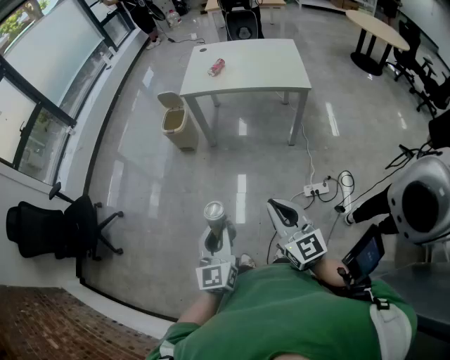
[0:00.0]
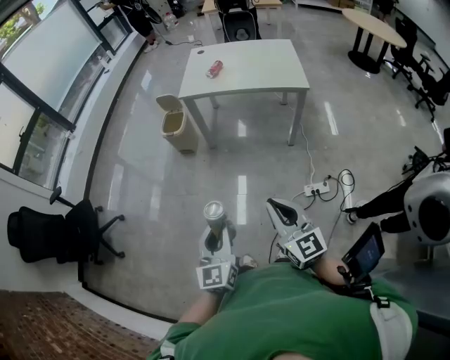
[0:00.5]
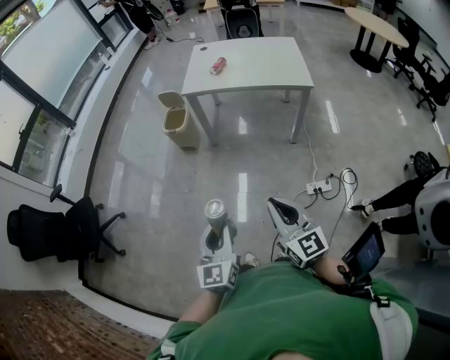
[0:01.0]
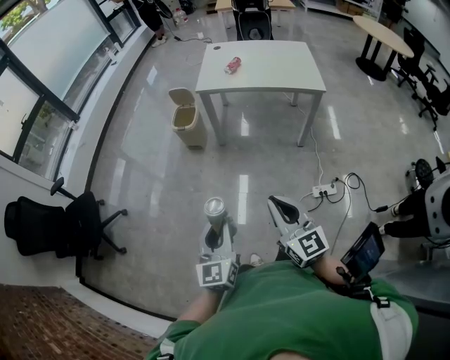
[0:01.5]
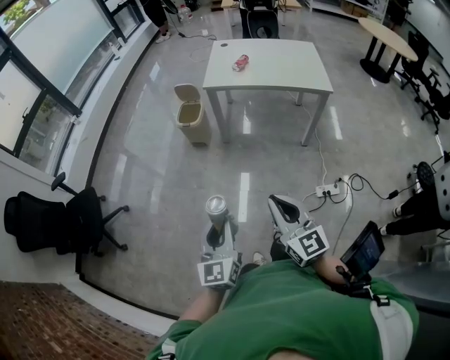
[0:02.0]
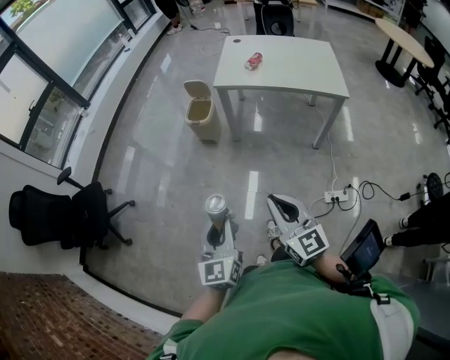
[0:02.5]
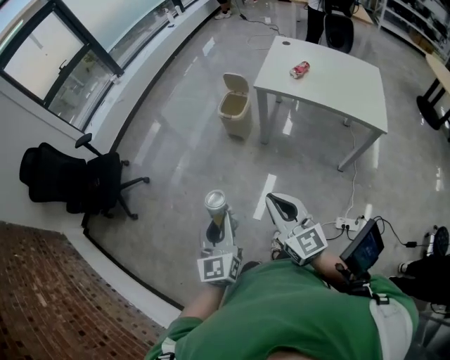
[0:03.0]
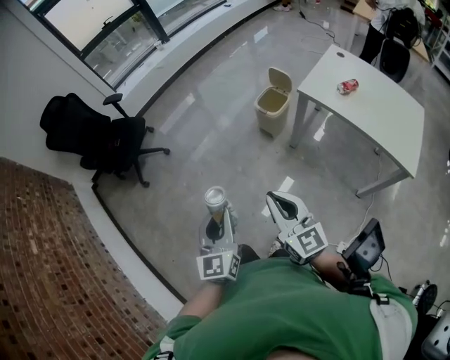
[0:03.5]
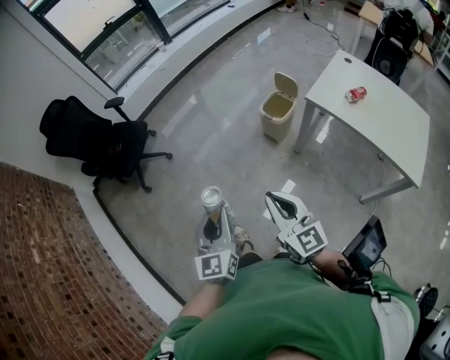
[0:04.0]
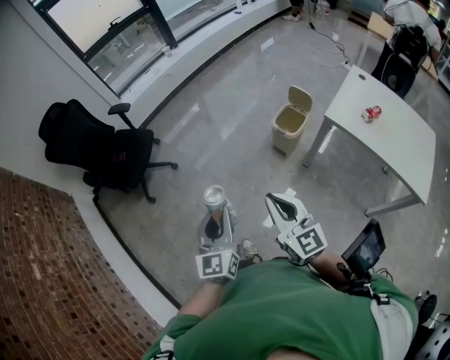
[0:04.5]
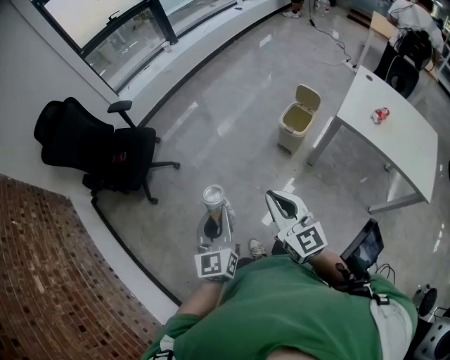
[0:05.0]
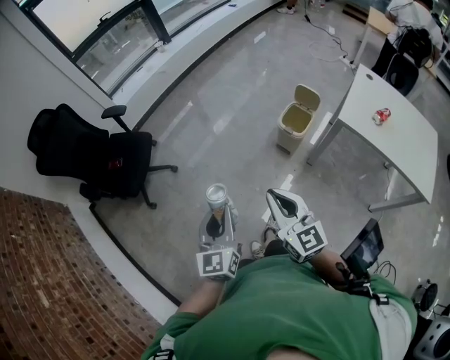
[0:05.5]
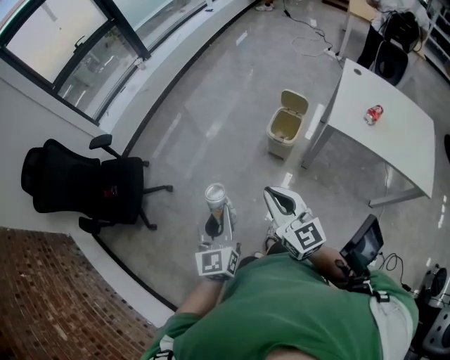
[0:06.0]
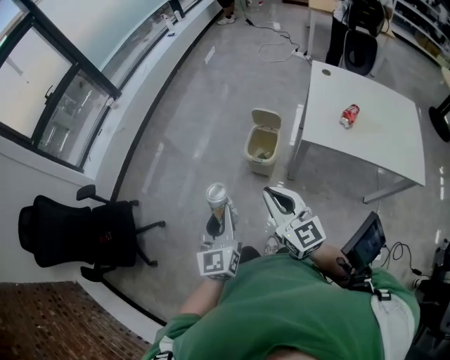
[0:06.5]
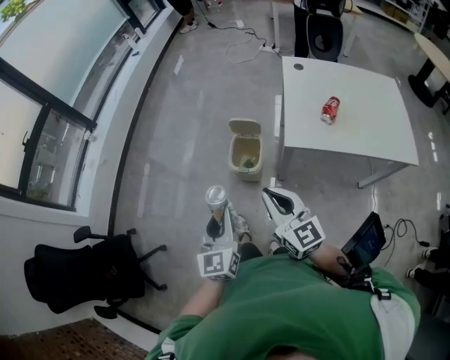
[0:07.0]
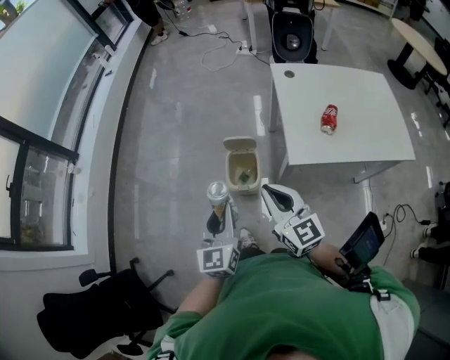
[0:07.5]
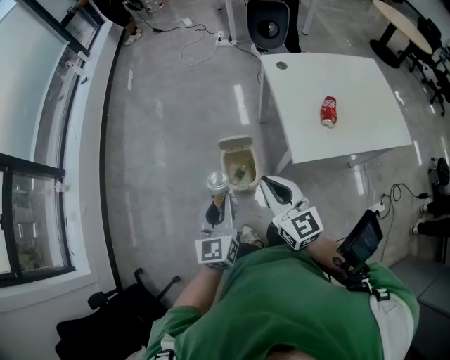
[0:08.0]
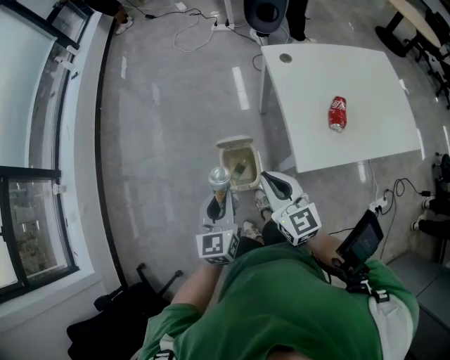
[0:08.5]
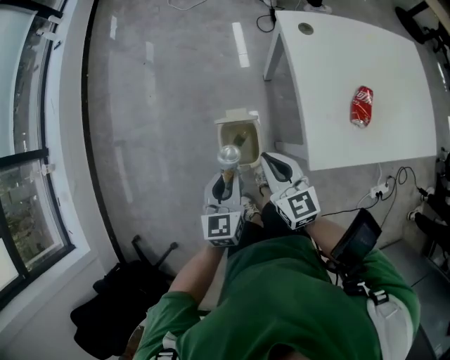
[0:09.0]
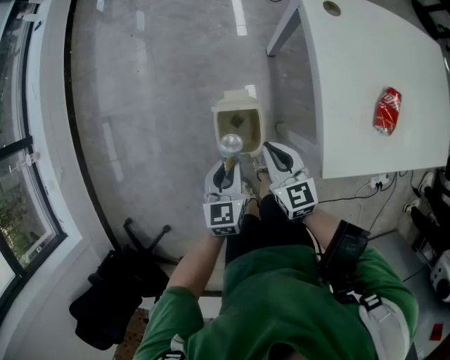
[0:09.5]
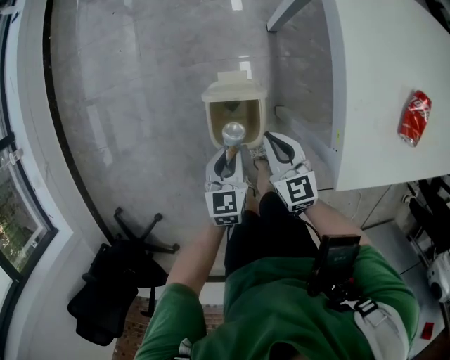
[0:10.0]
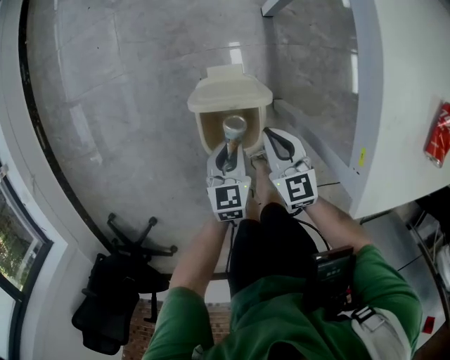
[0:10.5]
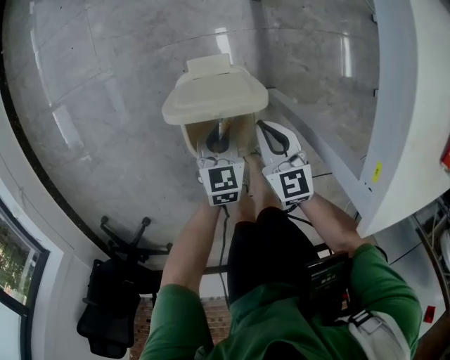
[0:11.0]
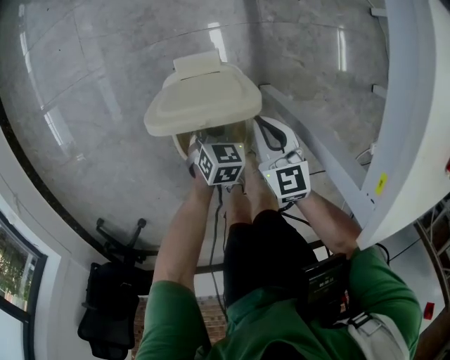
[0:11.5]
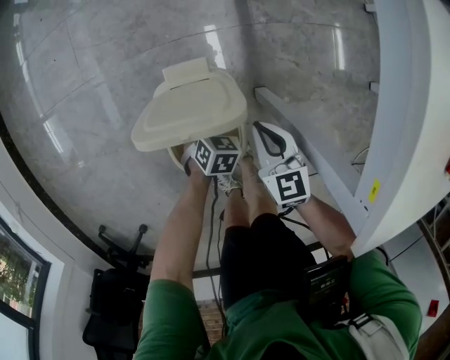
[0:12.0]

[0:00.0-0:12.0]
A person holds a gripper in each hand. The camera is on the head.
0:00.0 to 0:02.0: Both grippers move to the left, roughly 10 cm.
0:02.0 to 0:04.0: The left gripper changes place by approximately 20 cm, and swivels approximately 40 degrees; the right gripper changes place by about 25 cm, and swivels approximately 40 degrees.
0:04.0 to 0:06.0: Both grippers travel together forward, roughly 25 cm.
0:06.0 to 0:08.0: The left gripper changes place by about 50 cm, and turns by approximately 40 degrees, while the right gripper moves roughly 35 cm, and swivels about 40 degrees.
0:08.0 to 0:10.0: Both grippers move downward and forward, about 40 cm. The right gripper turns by some 30 degrees. The left gripper angles its fingers downward, by roughly 30 degrees.
0:10.0 to 0:12.0: The left gripper goes approximately 30 cm downward, and swivels approximately 40 degrees; the right gripper moves downward, approximately 20 cm.

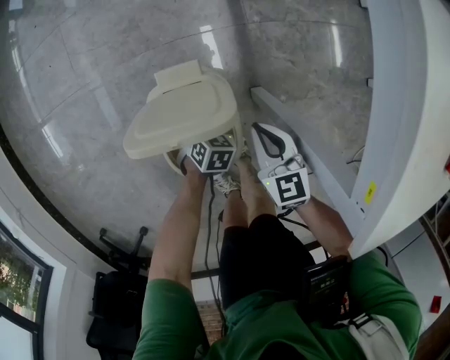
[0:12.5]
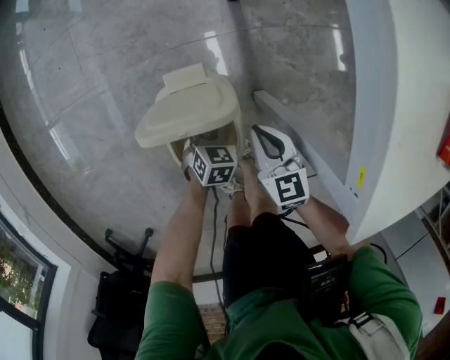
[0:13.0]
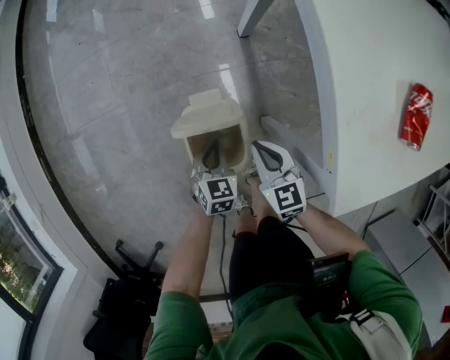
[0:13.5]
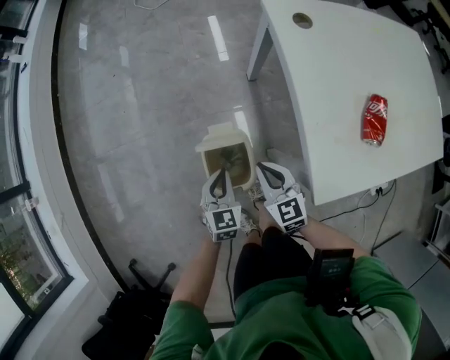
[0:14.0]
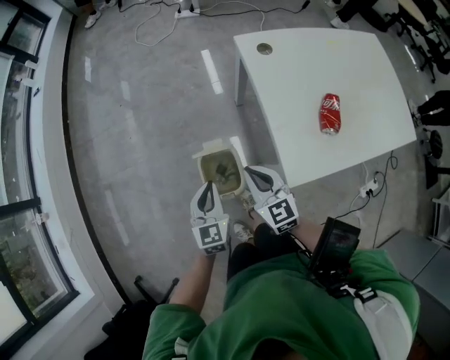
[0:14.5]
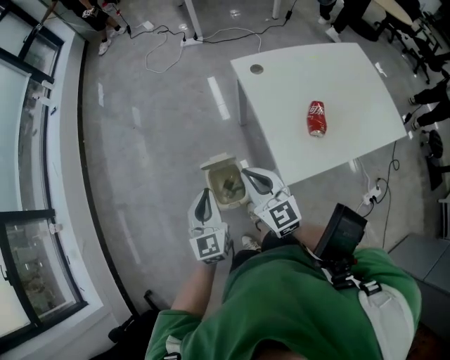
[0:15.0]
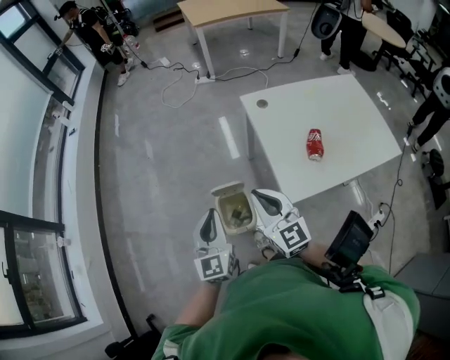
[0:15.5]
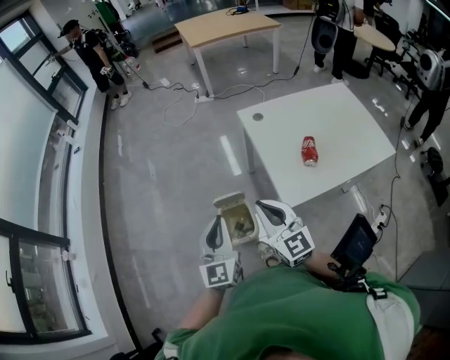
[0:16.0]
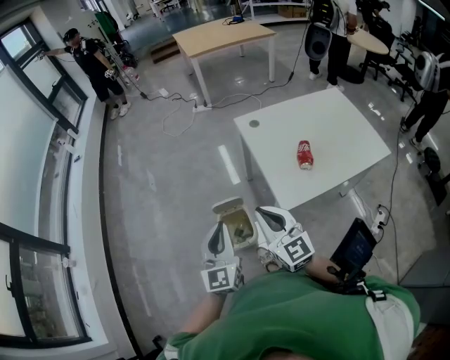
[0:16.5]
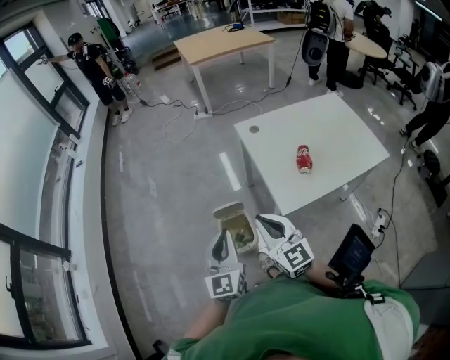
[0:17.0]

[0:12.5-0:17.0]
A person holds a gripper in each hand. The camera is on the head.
0:12.5 to 0:14.5: Both grippers move upward, approximately 40 cm. The right gripper rotates about 20 degrees, while the left gripper points its fingers some 50 degrees further upward, and closes.
0:14.5 to 0:17.0: Both grippers move upward and backward, some 25 cm. The right gripper turns by approximately 20 degrees; the left gripper changes its angle by approximately 30 degrees.

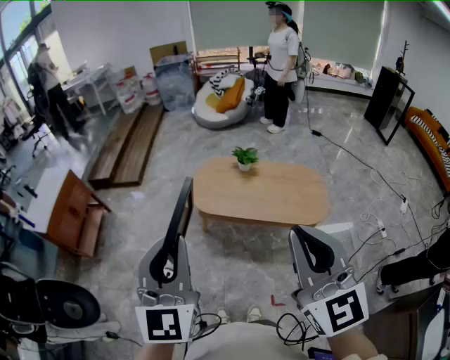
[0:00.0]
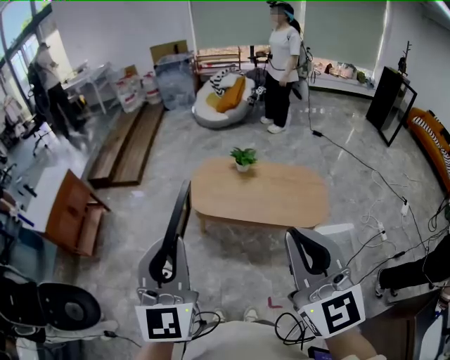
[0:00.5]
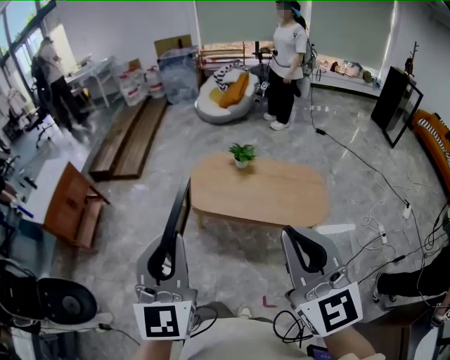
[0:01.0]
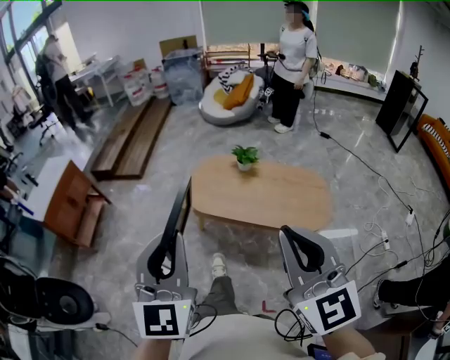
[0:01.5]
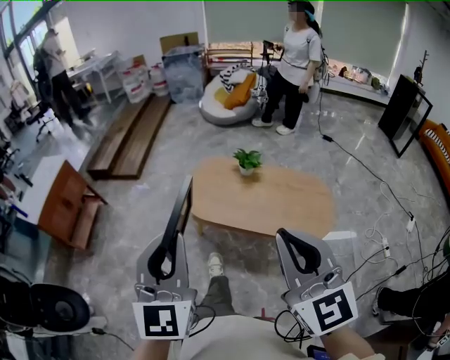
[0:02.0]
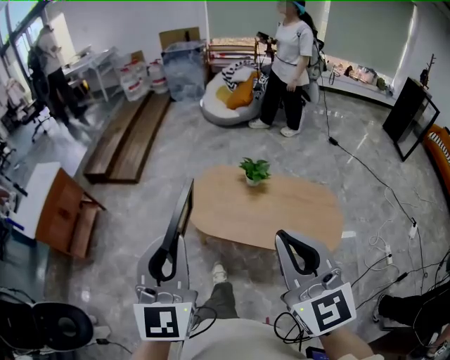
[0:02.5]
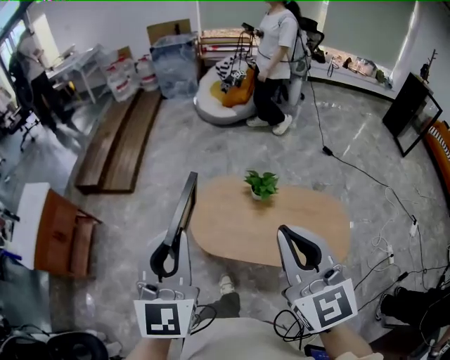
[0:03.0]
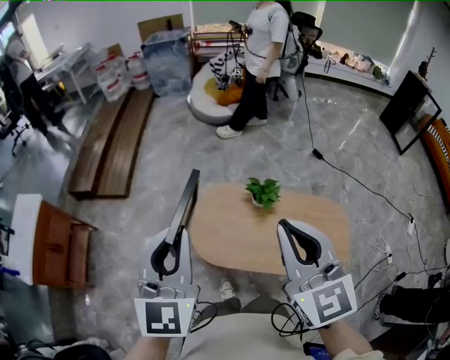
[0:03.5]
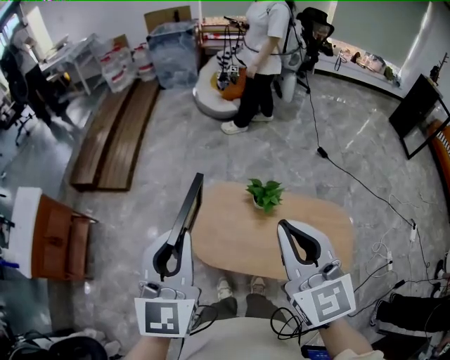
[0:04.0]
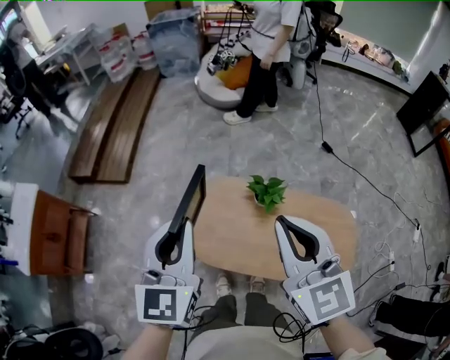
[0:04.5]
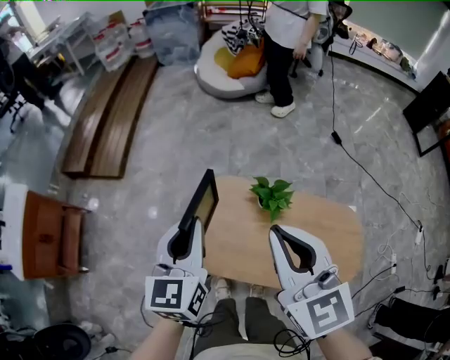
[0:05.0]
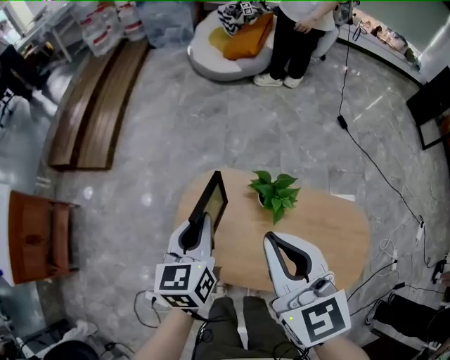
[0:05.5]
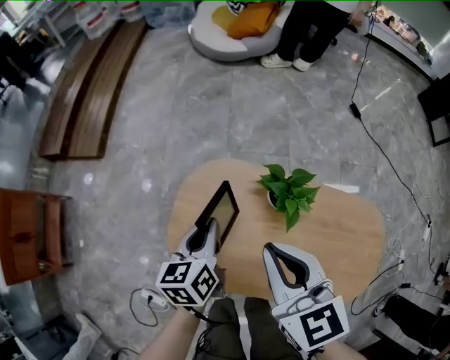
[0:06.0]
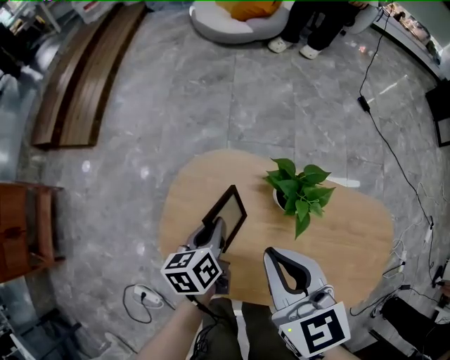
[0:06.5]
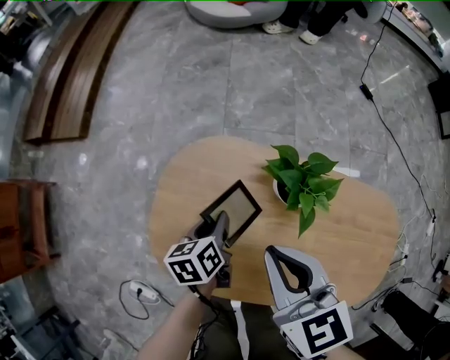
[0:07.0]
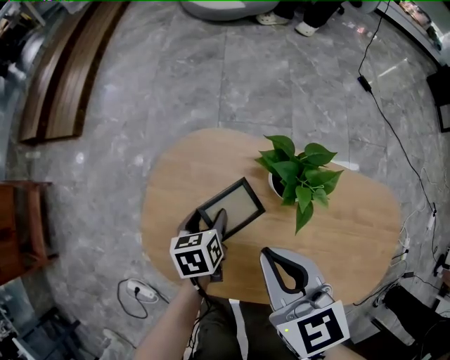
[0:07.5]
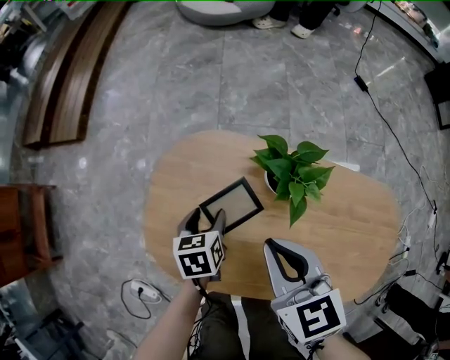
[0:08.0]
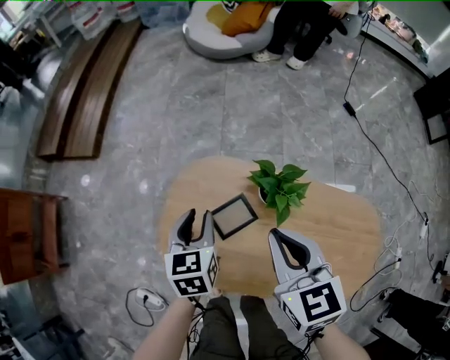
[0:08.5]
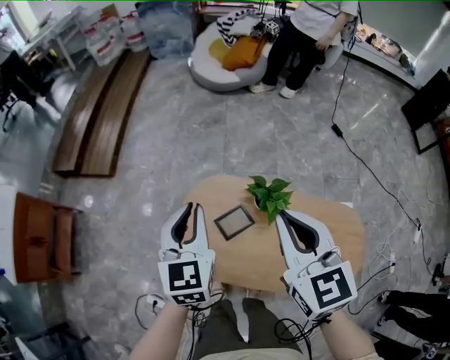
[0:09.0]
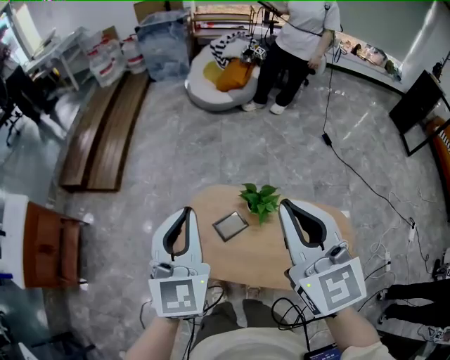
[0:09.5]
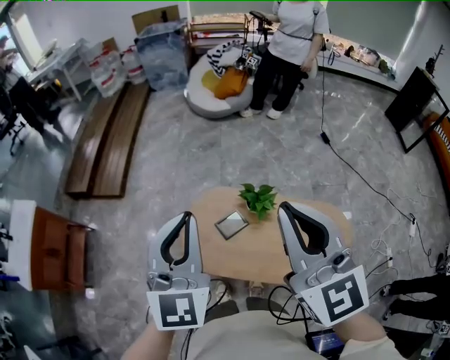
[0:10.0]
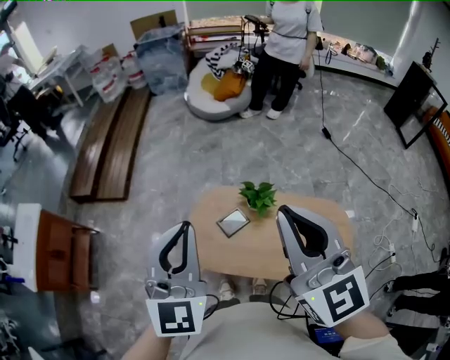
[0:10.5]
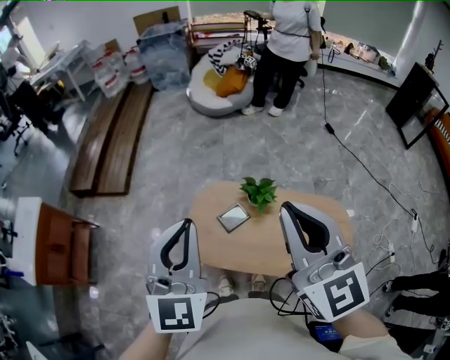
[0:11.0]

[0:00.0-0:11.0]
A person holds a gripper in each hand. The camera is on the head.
0:00.0 to 0:02.0: The right gripper goes some 10 cm forward and downward. The left gripper heads forward and to the right, covering approximately 10 cm.
0:02.0 to 0:03.5: Both grippers move forward, about 35 cm.
0:03.5 to 0:05.5: Both grippers travel together downward and forward, approximately 30 cm. The left gripper turns by approximately 40 degrees.
0:05.5 to 0:07.5: Both grippers move downward, some 35 cm. The left gripper tips its fingers downward by roughly 30 degrees, and opens up. Meanwhile the right gripper changes its angle by some 20 degrees.
0:07.5 to 0:09.0: The left gripper moves upward, about 40 cm, tilts its fingers roughly 30 degrees upward, and closes. The right gripper is displaced upward by about 30 cm, and rotates some 20 degrees.
0:09.0 to 0:11.0: The grippers both shift upward and backward by some 25 cm. The left gripper turns by about 20 degrees.
